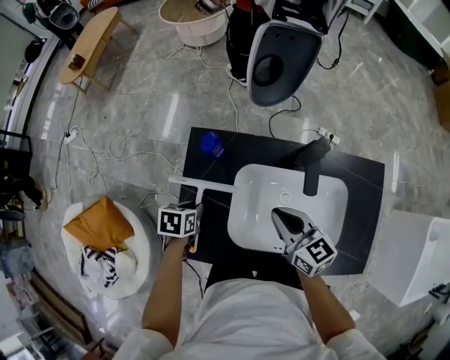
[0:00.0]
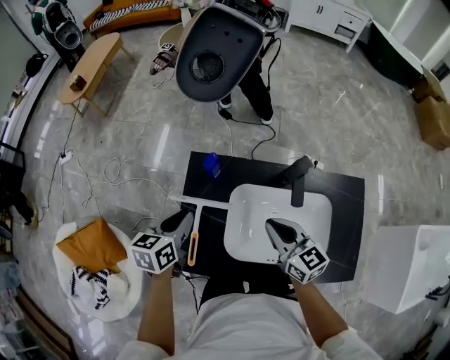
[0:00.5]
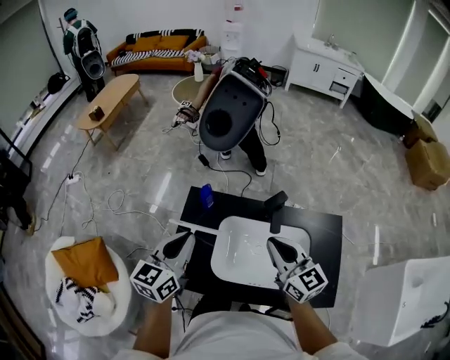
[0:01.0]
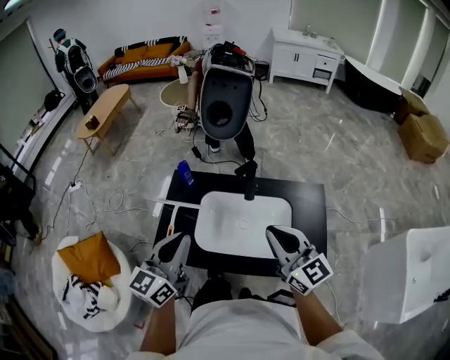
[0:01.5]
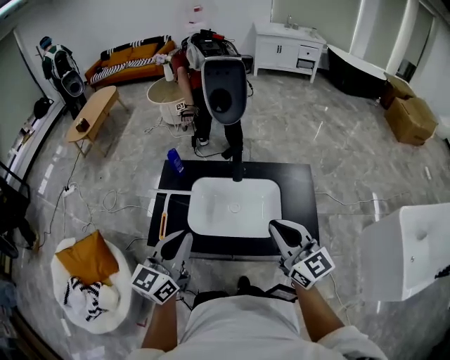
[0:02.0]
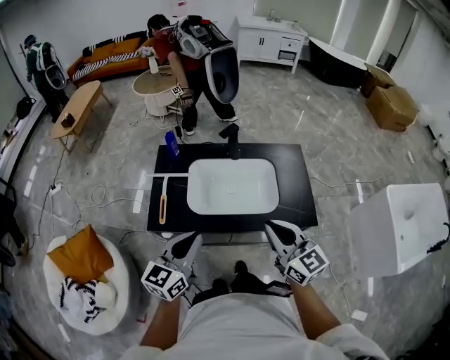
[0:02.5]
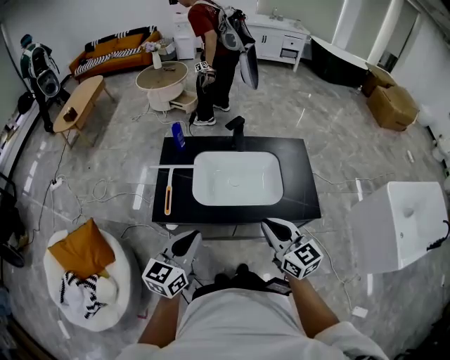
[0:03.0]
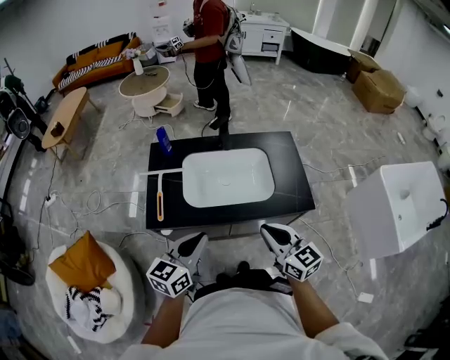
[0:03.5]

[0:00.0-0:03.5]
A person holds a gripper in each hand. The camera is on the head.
0:00.0 to 0:02.0: The right gripper goes approximately 40 cm backward, upward and to the right, and rotates approximately 30 degrees. The left gripper travels upward, backward and to the right by some 50 cm, and tips its fingers upward by roughly 60 degrees.
0:02.0 to 0:03.5: The right gripper travels backward, downward and to the left by approximately 15 cm; the left gripper moves backward and downward, roughly 15 cm.

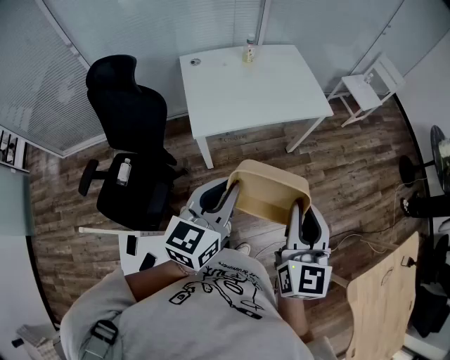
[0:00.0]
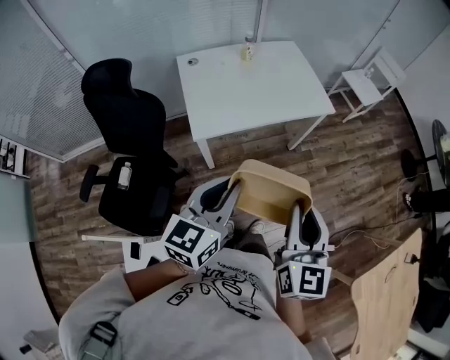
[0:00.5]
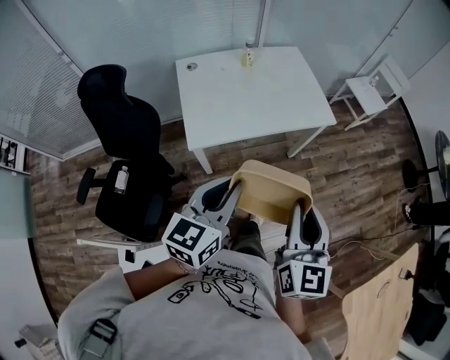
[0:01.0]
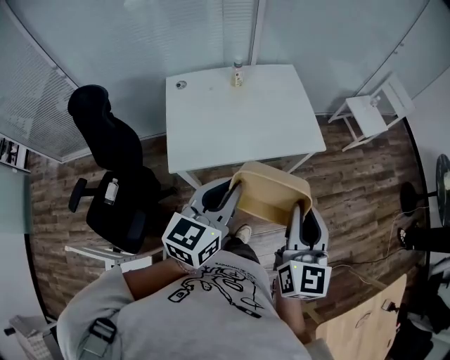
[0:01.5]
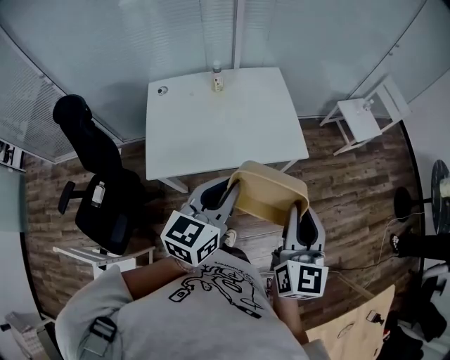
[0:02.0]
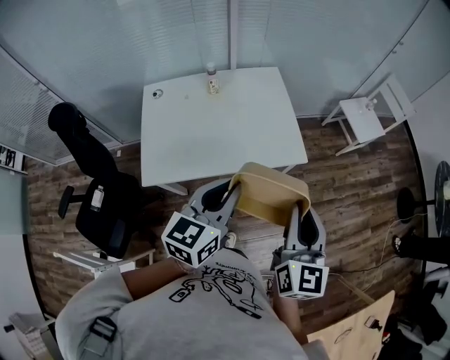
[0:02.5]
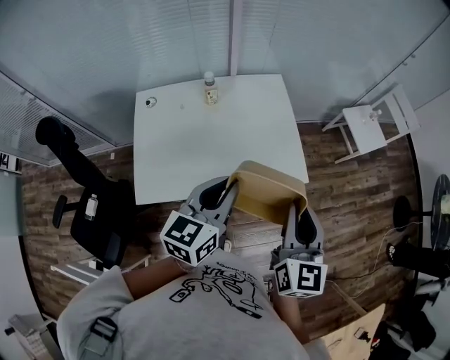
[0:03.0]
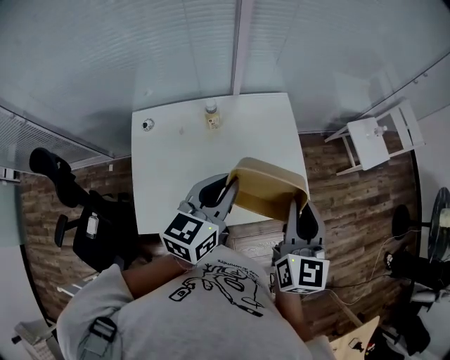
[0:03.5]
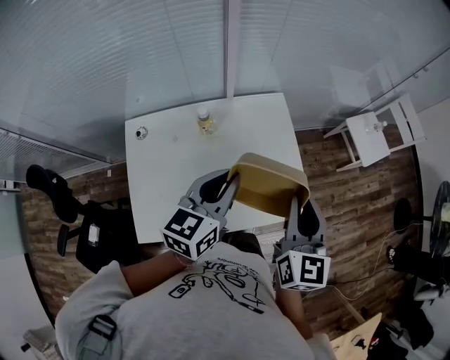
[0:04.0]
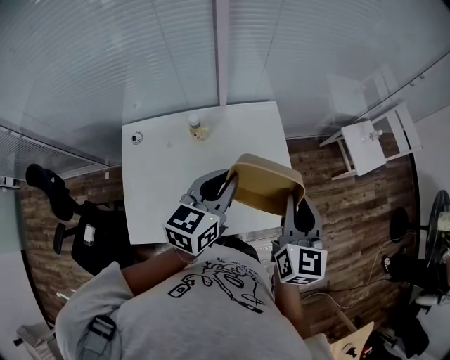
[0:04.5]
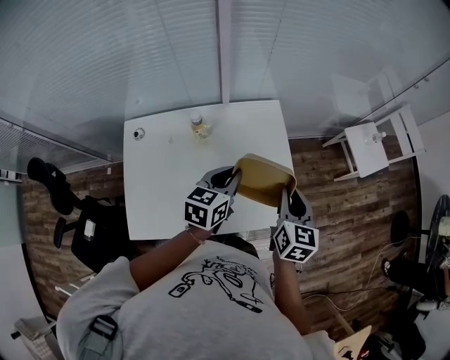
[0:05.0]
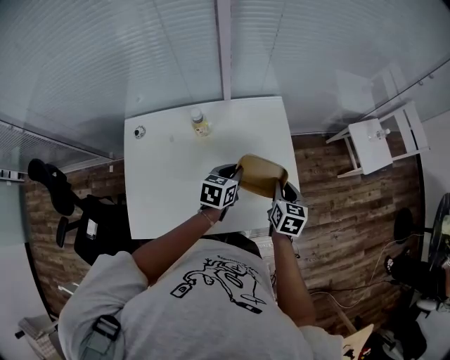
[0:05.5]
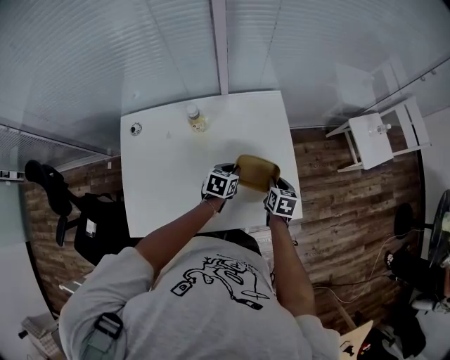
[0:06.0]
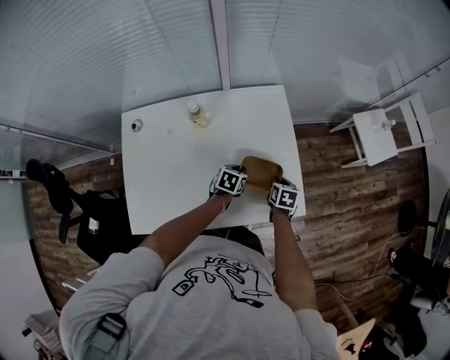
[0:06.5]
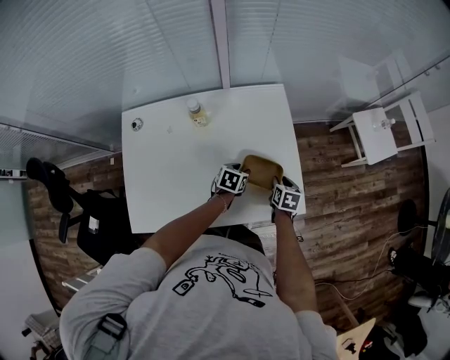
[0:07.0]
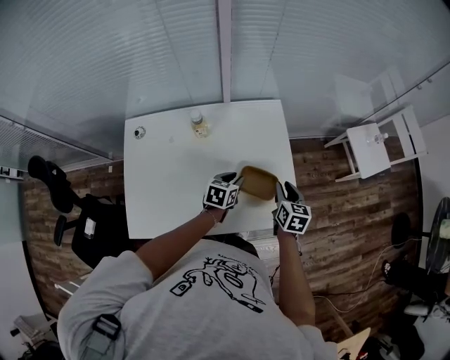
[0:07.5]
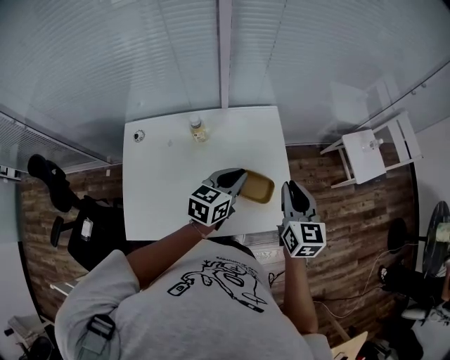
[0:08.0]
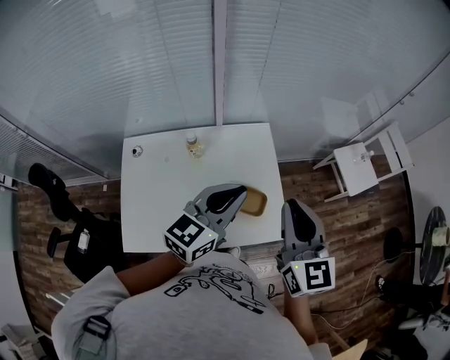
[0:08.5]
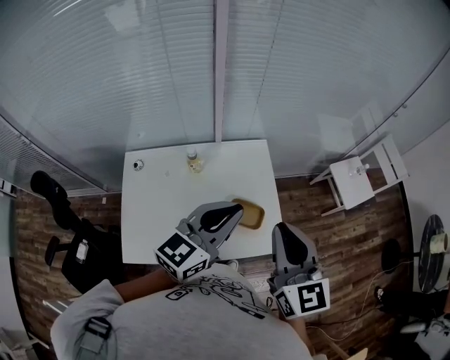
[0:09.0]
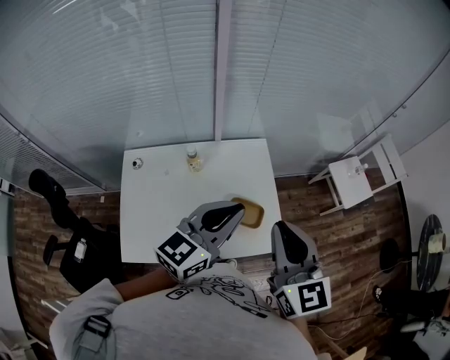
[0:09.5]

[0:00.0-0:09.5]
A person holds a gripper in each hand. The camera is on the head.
0:00.0 to 0:02.0: Both grippers travel together forward and to the right, some 35 cm.
0:02.0 to 0:04.0: The two grippers go approximately 35 cm forward.
0:04.0 to 0:05.5: Both grippers travel together downward, some 25 cm. The left gripper turns by approximately 20 degrees. Meanwhile the right gripper swivels about 30 degrees.
0:05.5 to 0:07.5: The left gripper goes some 10 cm downward, and opens up; the right gripper travels downward and back again, some 15 cm each way.
0:07.5 to 0:09.5: Both grippers move upward, approximately 40 cm. The right gripper points its fingers approximately 30 degrees further upward, and closes, while the left gripper points its fingers some 40 degrees further upward, and closes.

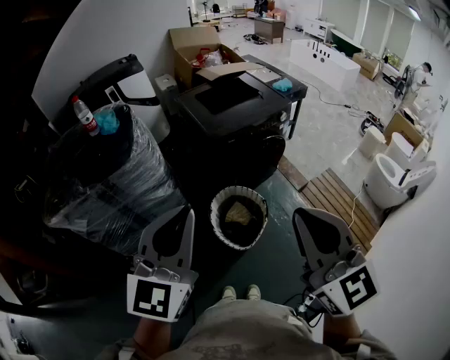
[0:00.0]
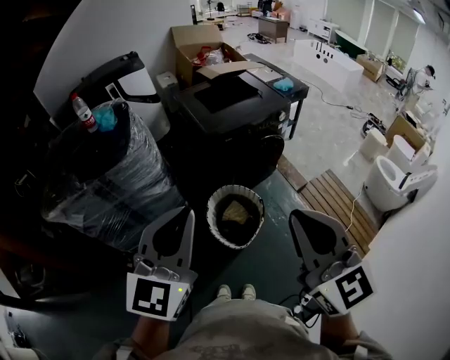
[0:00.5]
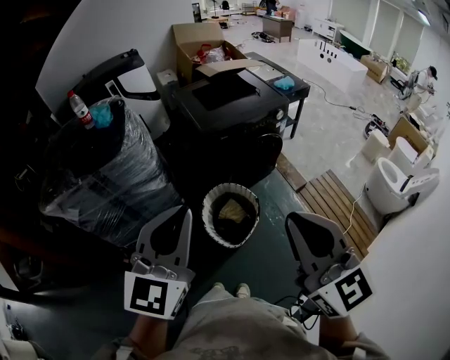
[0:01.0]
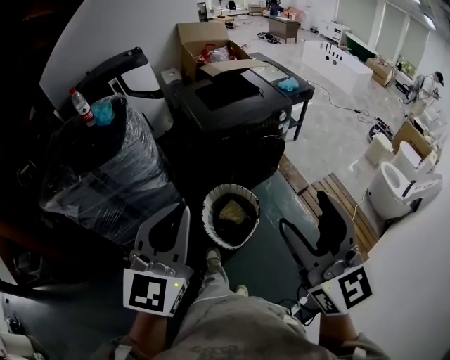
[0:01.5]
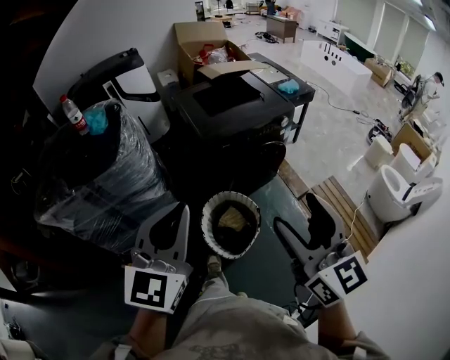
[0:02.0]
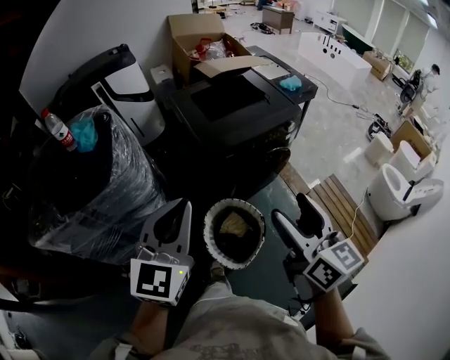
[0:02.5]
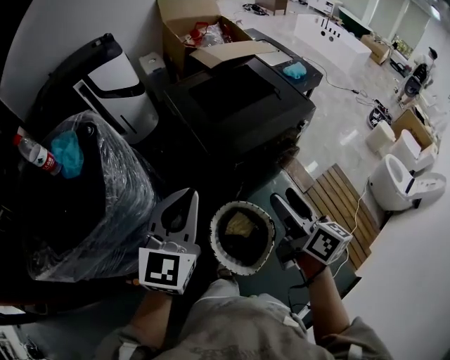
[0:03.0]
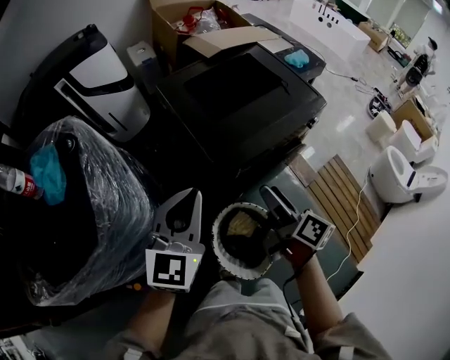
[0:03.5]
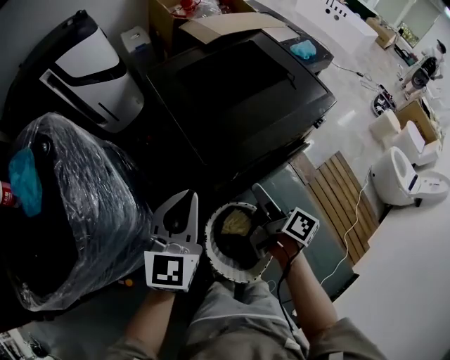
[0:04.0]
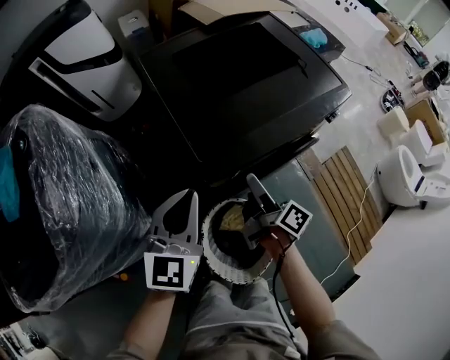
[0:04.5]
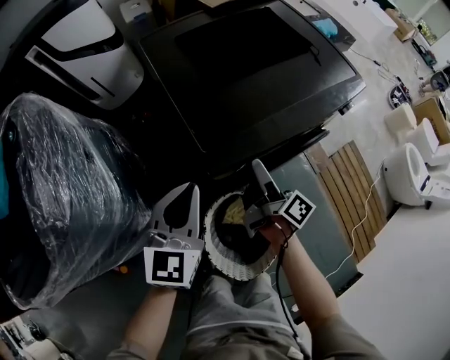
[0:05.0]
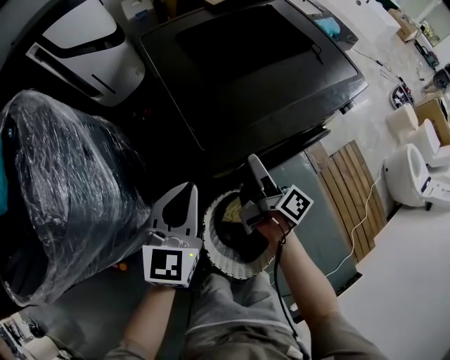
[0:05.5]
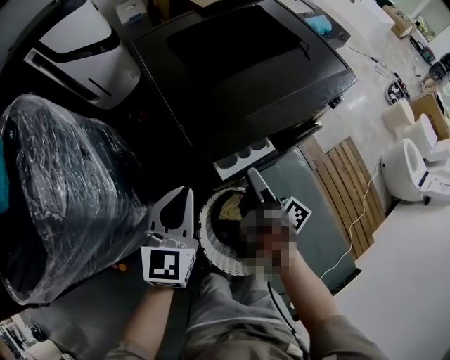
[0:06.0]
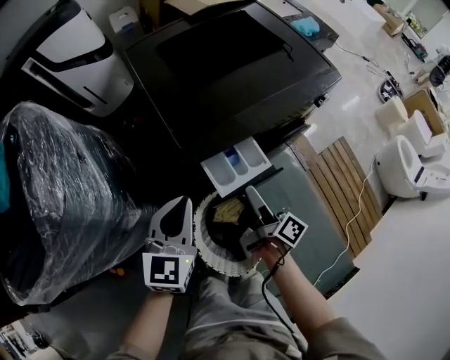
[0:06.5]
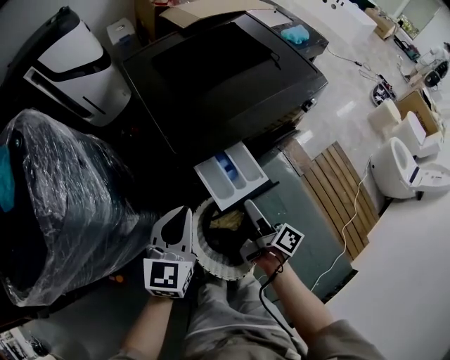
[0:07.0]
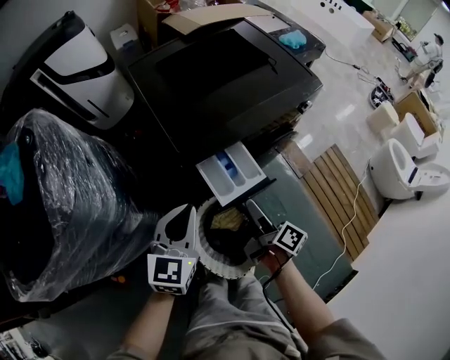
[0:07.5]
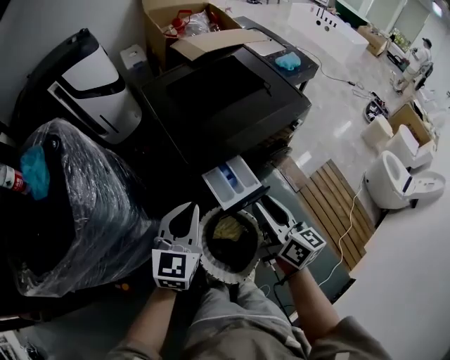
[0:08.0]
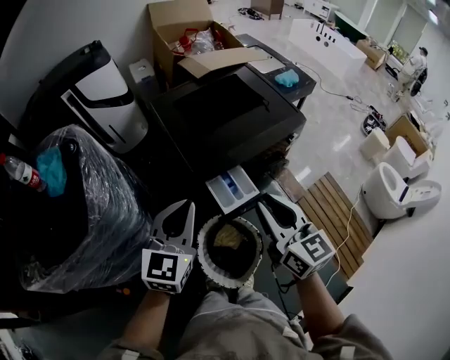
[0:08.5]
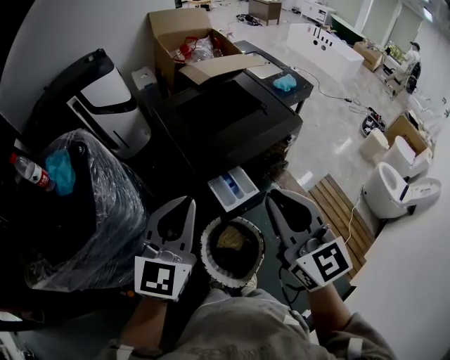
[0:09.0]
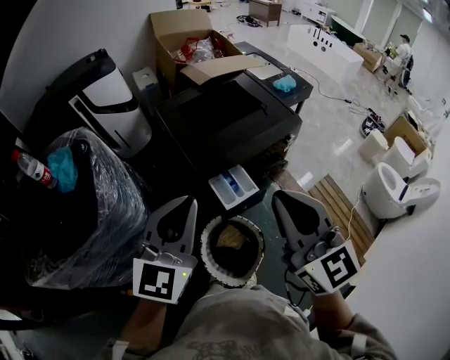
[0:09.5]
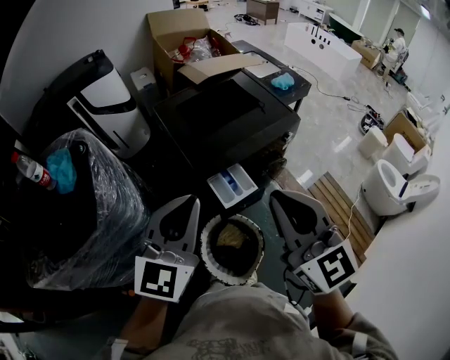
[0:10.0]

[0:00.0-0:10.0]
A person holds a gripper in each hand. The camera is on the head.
0:00.0 to 0:02.0: The left gripper travels forward and to the right by approximately 10 cm. The right gripper moves forward, to the right and downward, about 15 cm, and opens its fingers.
0:02.0 to 0:04.0: The grippers both shift forward and downward by about 50 cm. The right gripper rotates around the line of its fingers by approximately 70 degrees, clockwise from behind.
0:04.0 to 0:06.0: The two grippers go about 10 cm downward.
0:06.0 to 0:08.0: The left gripper shifts some 10 cm upward and backward, while the right gripper heads upward and backward, covering approximately 20 cm, rotates around the line of its fingers by approximately 40 degrees, counterclockwise from behind, and closes.
0:08.0 to 0:10.0: The grippers both shift upward by about 25 cm. The right gripper twists about 50 degrees counterclockwise, seen from behind, and closes.

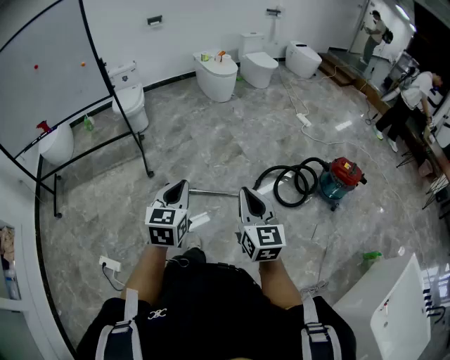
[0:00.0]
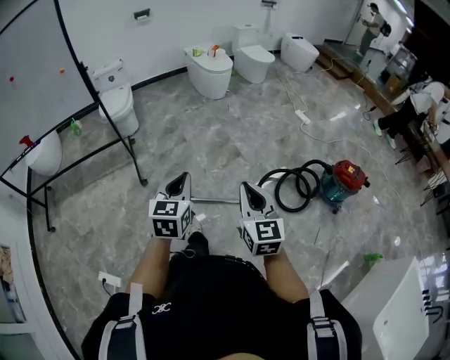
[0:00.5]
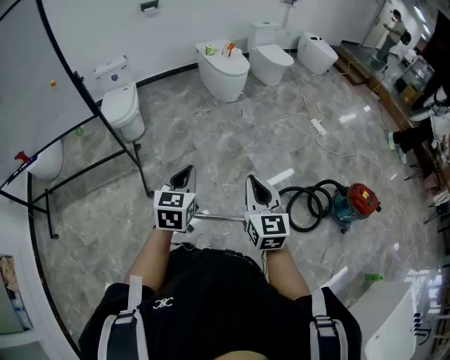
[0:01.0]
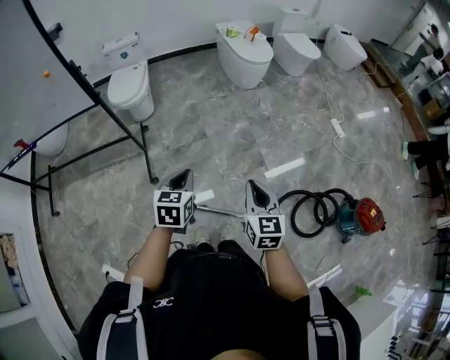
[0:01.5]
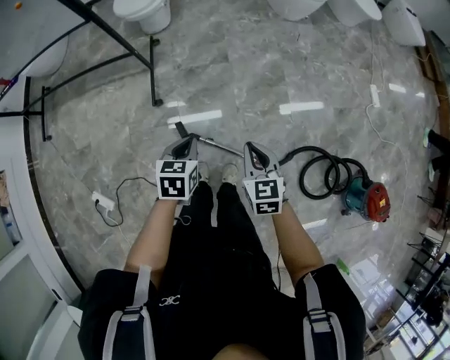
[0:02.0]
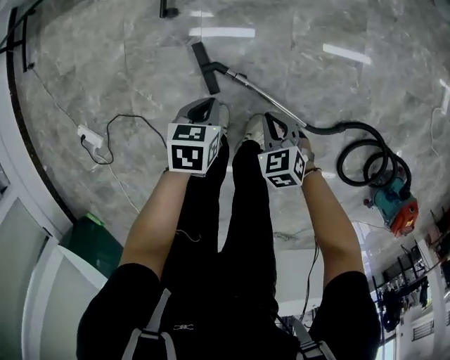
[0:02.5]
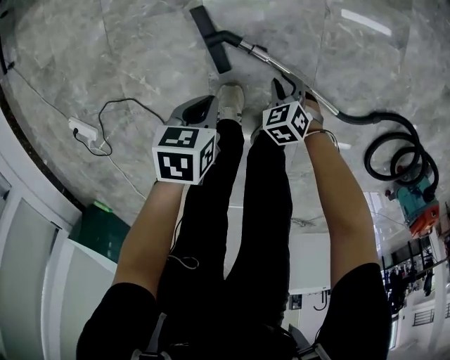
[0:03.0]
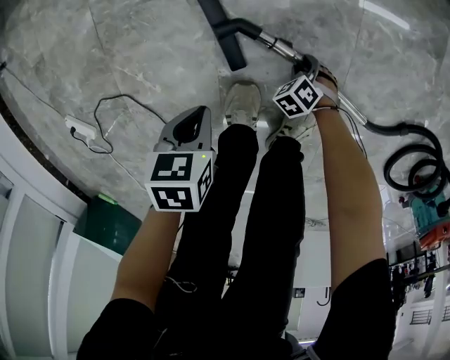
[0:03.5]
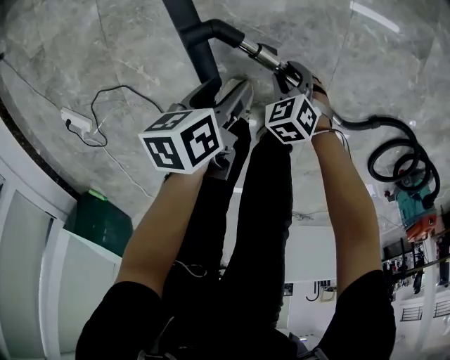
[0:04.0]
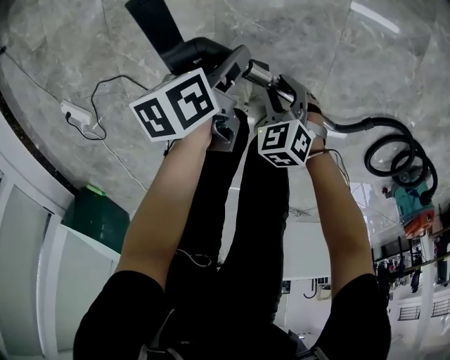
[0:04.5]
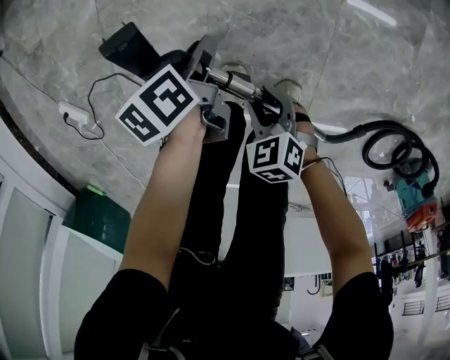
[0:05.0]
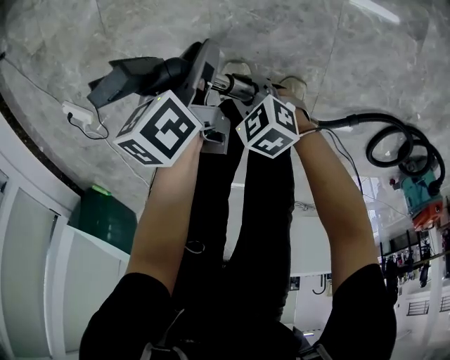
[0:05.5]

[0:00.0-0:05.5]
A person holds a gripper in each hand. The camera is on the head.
0:00.0 to 0:02.0: The pair of grippers is taken forward, roughly 60 cm. Both grippers move downward, approximately 30 cm. The right gripper angles its fingers downward, by about 30 degrees, while the left gripper tips its fingers downward by approximately 30 degrees.
0:02.0 to 0:03.5: The two grippers go roughly 70 cm downward. The left gripper rotates approximately 30 degrees. Meanwhile the right gripper tips its fingers downward by roughly 50 degrees, and opens up.
0:03.5 to 0:05.5: The left gripper ends up approximately 15 cm from where it was, changes its angle by about 40 degrees, and opens, while the right gripper moves upward, about 25 cm, points its fingers roughly 30 degrees further upward, and closes its fingers.
